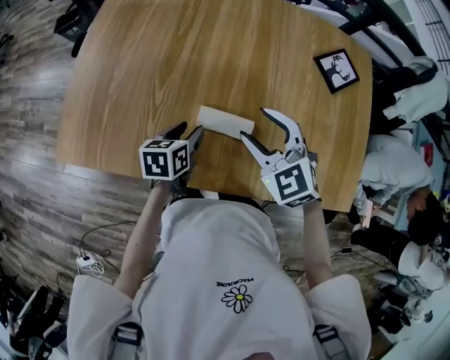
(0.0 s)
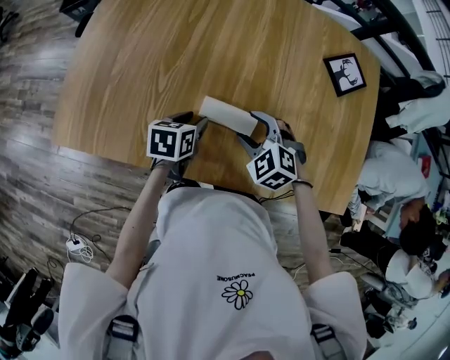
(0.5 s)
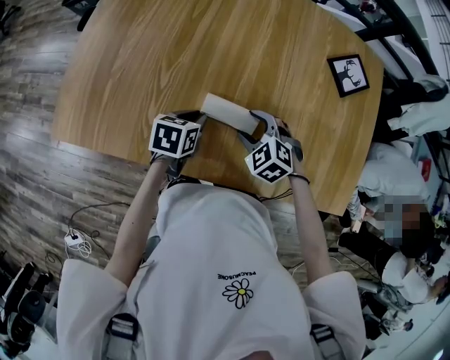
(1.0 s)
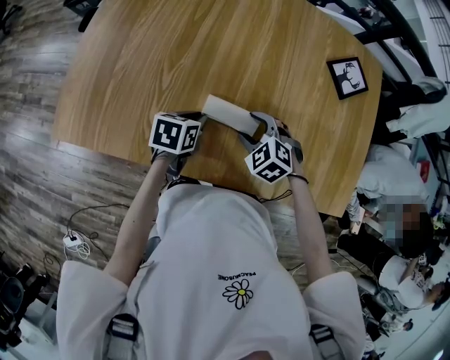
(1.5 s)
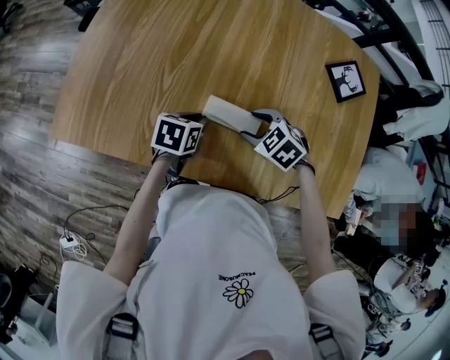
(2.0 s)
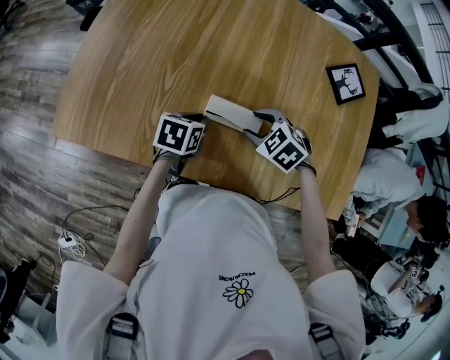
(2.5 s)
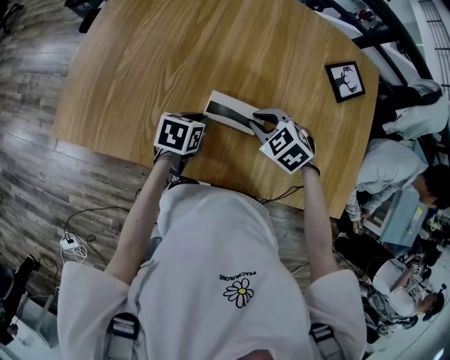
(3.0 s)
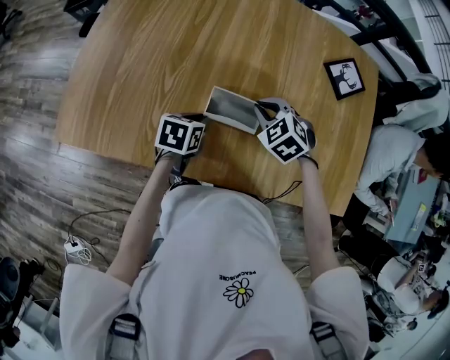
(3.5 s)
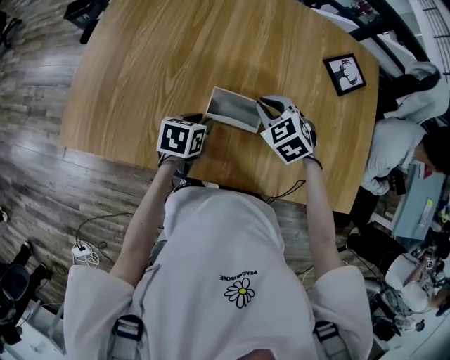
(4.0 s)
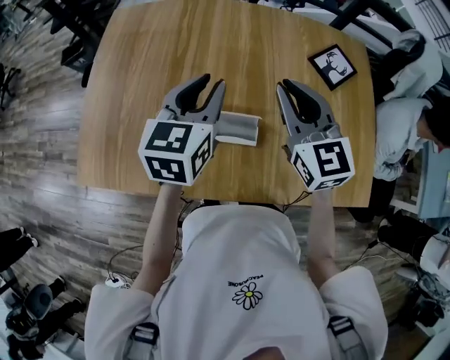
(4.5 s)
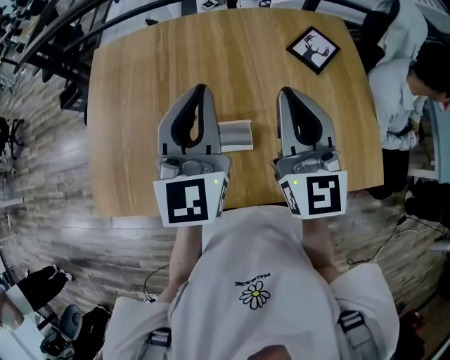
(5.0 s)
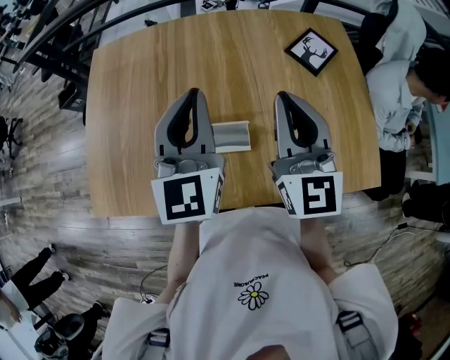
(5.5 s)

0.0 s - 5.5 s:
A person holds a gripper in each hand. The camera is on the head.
0.0 s - 2.0 s: The left gripper closes, while the right gripper goes about 15 cm downward, and changes its angle by roughly 30 degrees.
2.0 s - 3.5 s: The right gripper goes approximately 5 cm forward, and closes its fingers.
3.5 s - 5.5 s: The grippers both shift upward by roughly 30 cm. The left gripper angles its fingers upward, by about 50 degrees; the right gripper points its fingers some 60 degrees further upward.

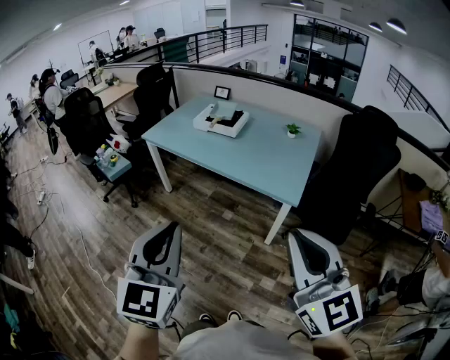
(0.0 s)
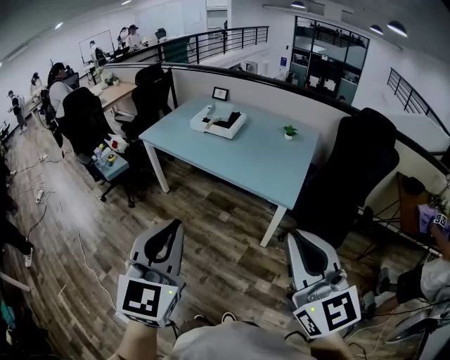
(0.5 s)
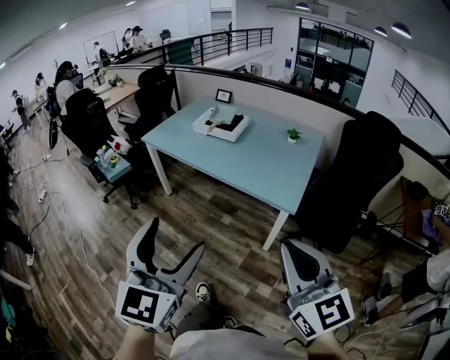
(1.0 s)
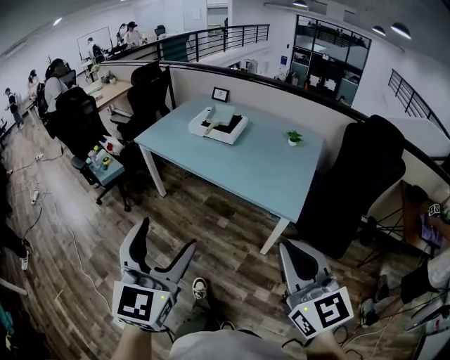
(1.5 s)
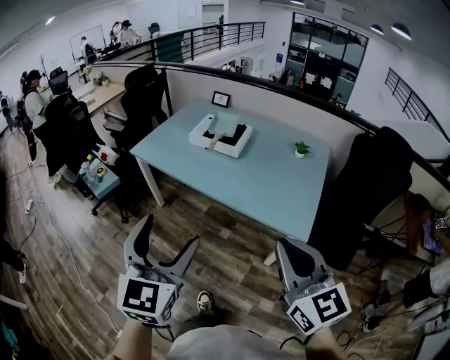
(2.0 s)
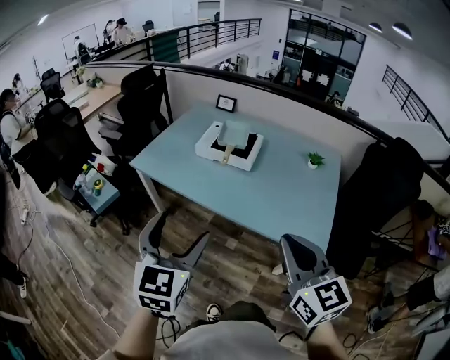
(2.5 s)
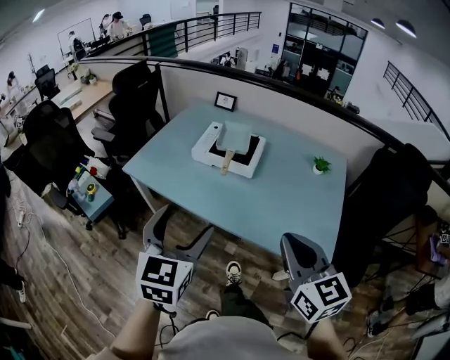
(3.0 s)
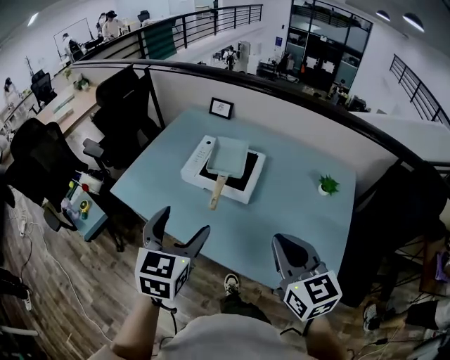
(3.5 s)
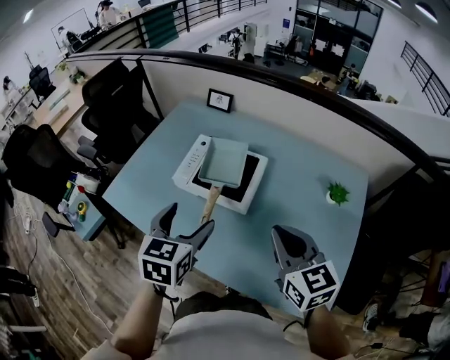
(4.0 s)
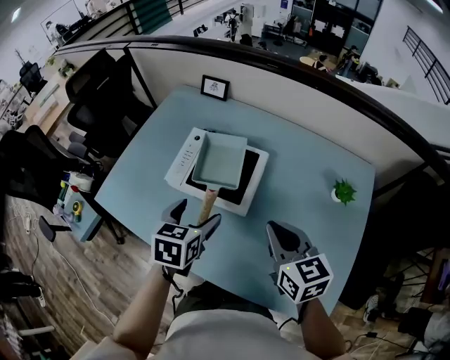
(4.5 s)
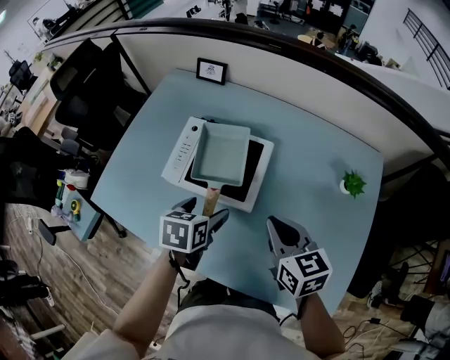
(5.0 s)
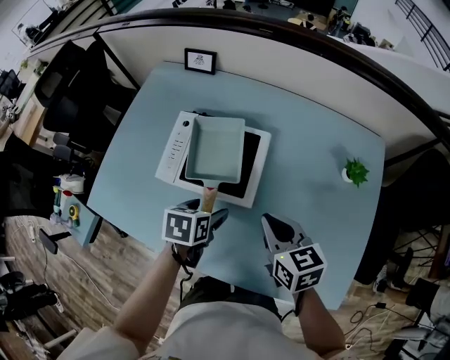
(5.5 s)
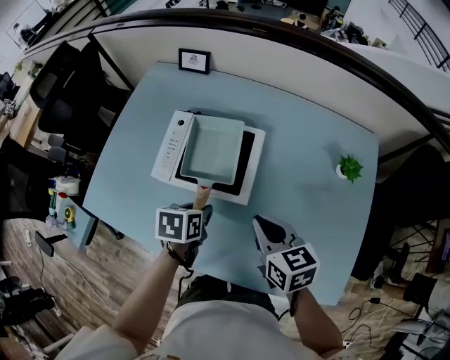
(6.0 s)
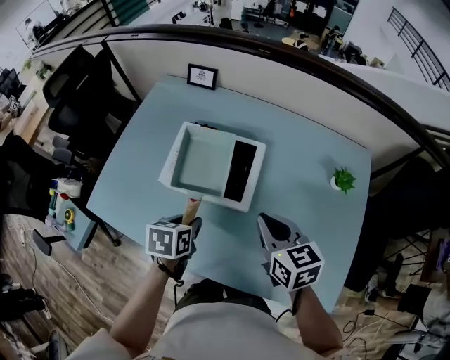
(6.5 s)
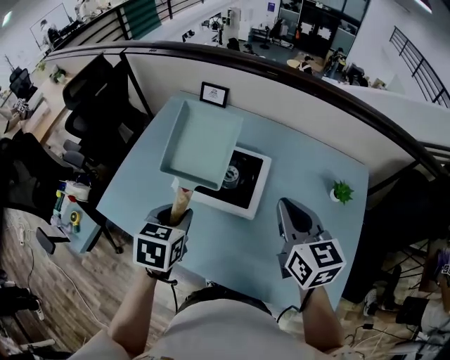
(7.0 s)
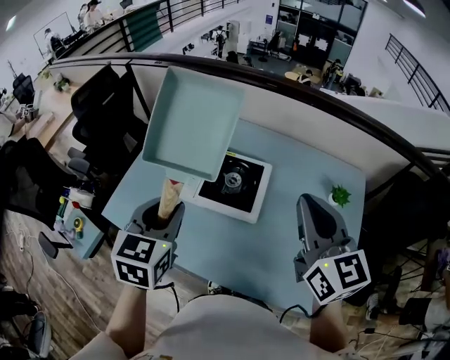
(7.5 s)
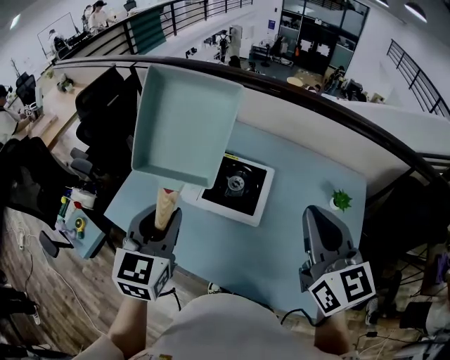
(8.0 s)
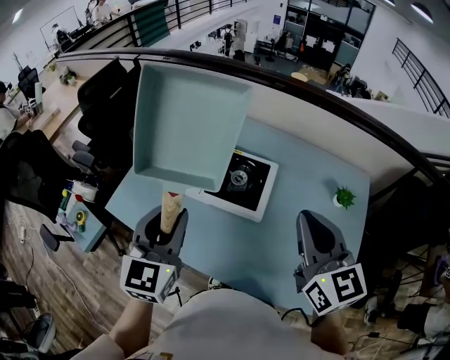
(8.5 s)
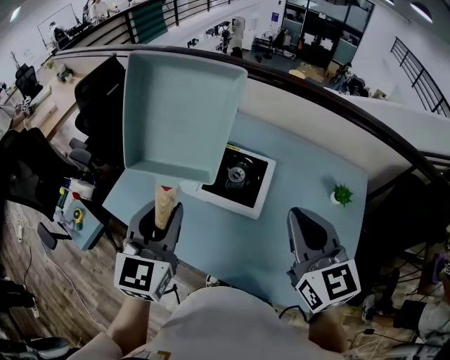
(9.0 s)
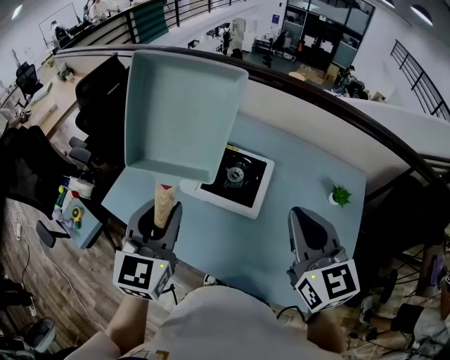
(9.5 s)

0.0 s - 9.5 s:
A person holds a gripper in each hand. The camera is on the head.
0.0 s - 2.0 s: Both grippers move forward, some 25 cm. The left gripper opens its fingers.
2.0 s - 4.0 s: Both grippers are carried forward, approximately 60 cm. The left gripper turns by some 30 degrees.
4.0 s - 5.5 s: The two grippers go approximately 20 cm downward and forward. The left gripper turns by roughly 40 degrees. The right gripper swivels approximately 20 degrees.
5.5 s - 7.5 s: The left gripper is displaced upward and to the left by some 30 cm, rotates some 40 degrees, and closes, while the right gripper heads upward, covering about 25 cm, and turns by some 30 degrees.
7.5 s - 9.5 s: The grippers stay close to where they were, moving slightly.

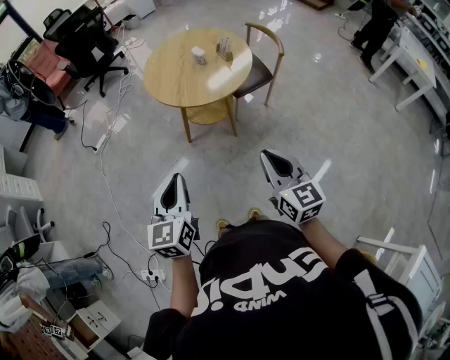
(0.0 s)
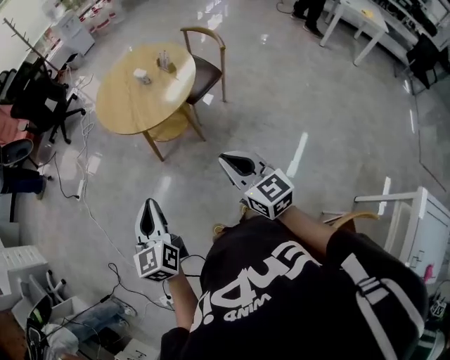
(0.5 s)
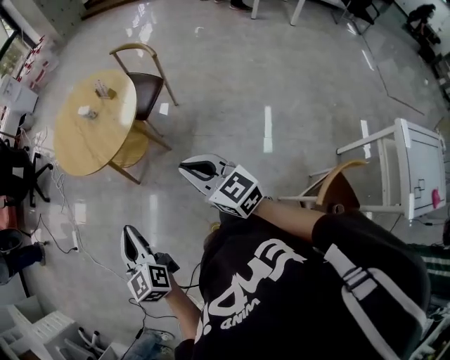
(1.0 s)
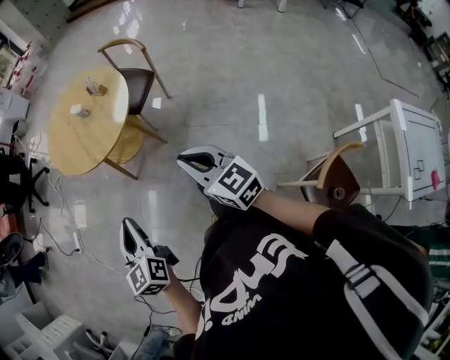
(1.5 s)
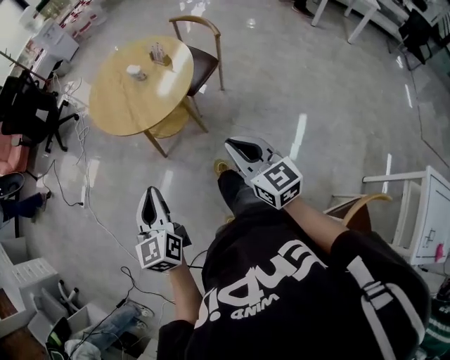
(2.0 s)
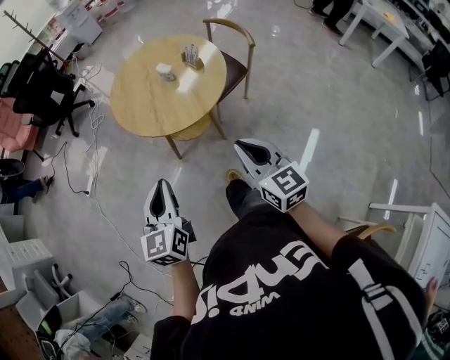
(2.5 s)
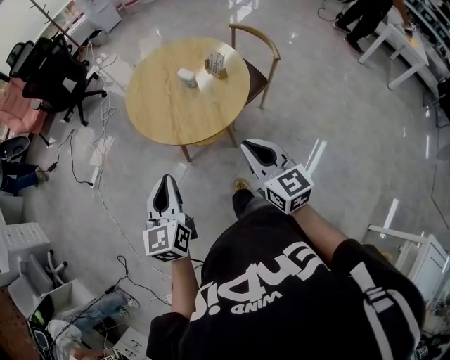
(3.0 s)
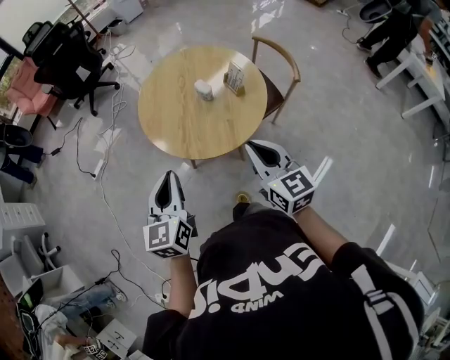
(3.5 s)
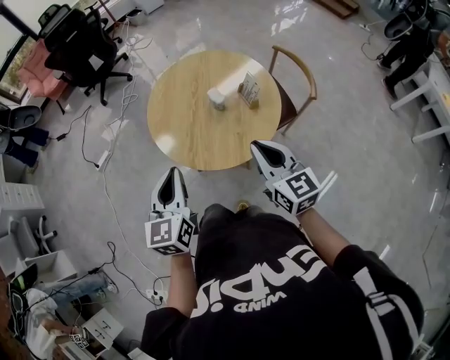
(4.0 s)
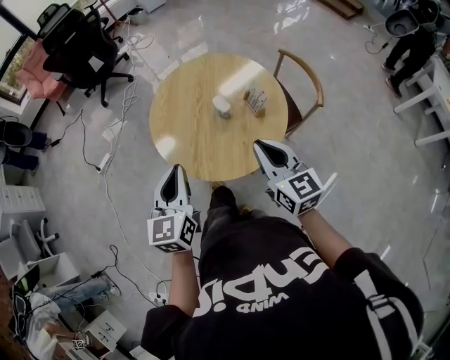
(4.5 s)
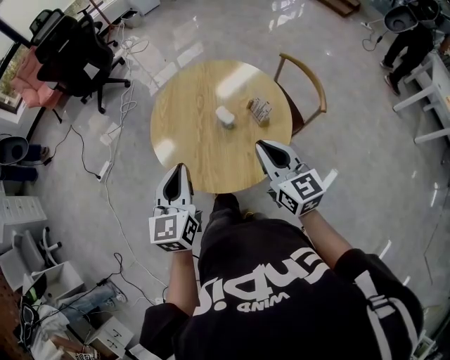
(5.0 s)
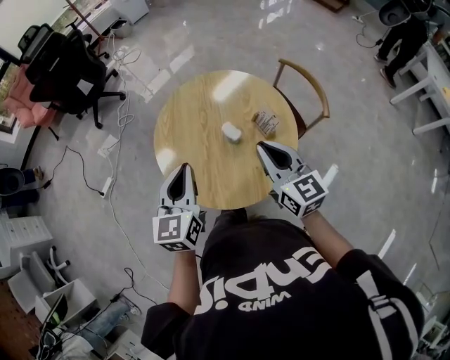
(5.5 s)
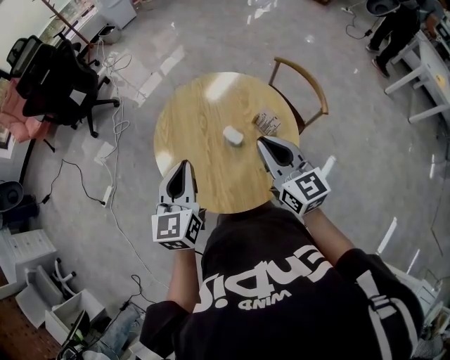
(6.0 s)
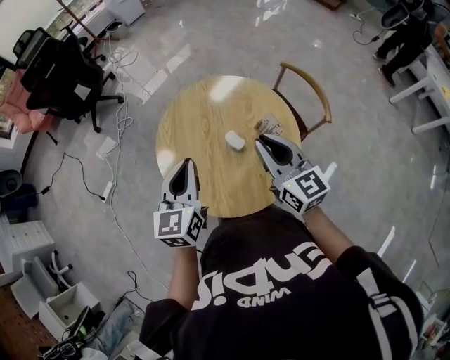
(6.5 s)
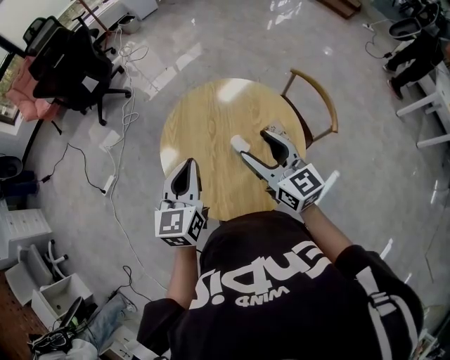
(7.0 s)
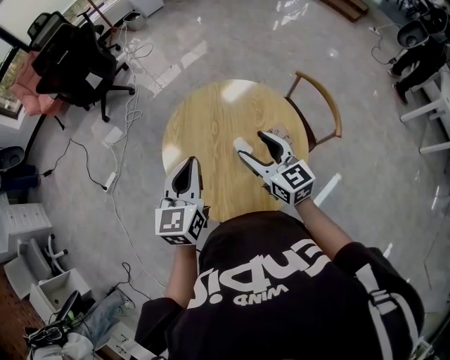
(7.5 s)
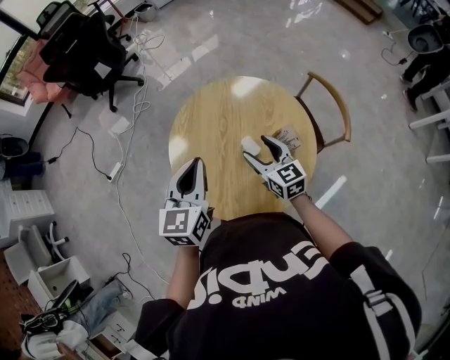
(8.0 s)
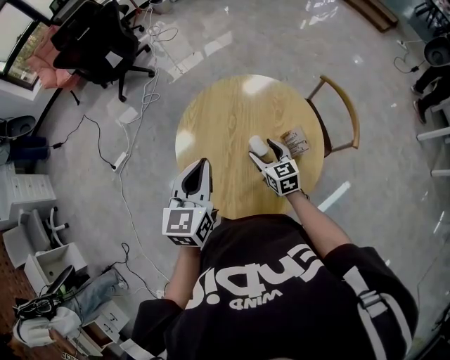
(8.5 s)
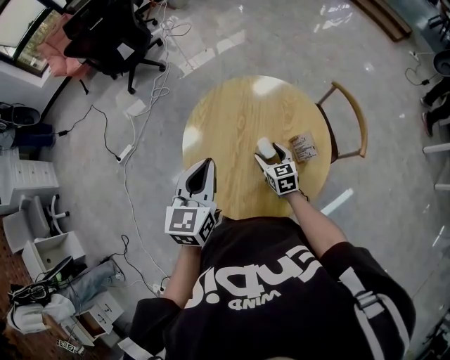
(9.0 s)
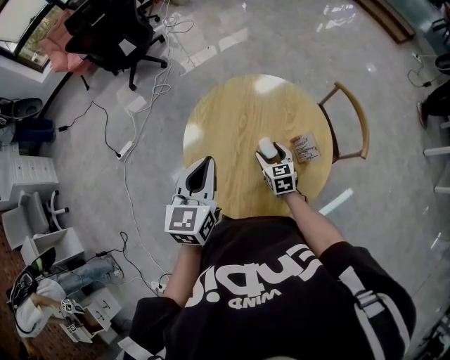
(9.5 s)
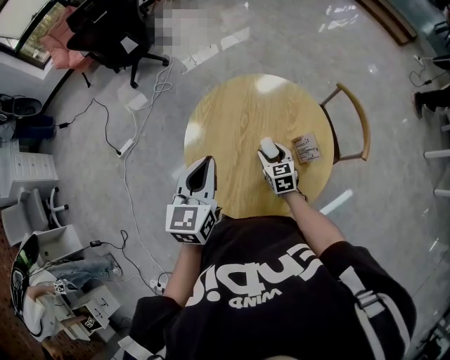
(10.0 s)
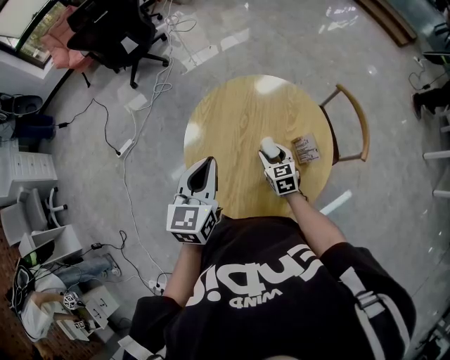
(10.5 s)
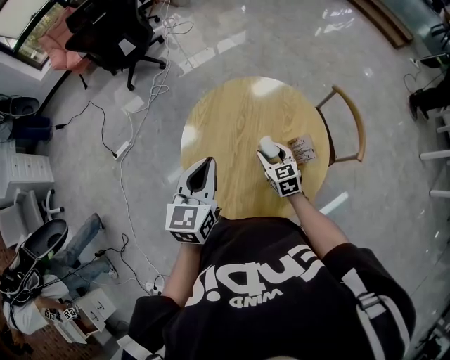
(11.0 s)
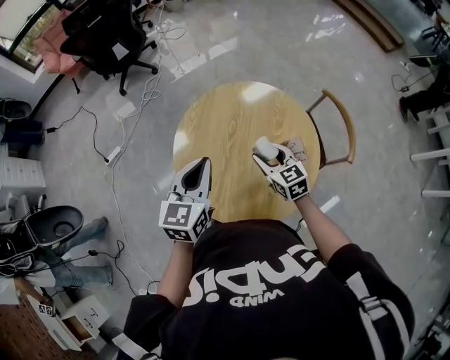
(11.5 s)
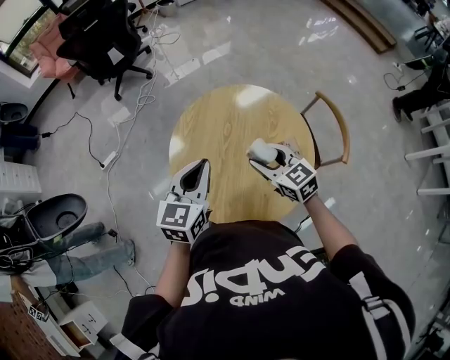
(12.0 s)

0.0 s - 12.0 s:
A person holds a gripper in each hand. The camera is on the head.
0.0 s - 2.0 s: The left gripper moves forward, some 5 cm. Meanwhile the right gripper shifts by about 5 cm.
2.0 s - 4.0 s: The two grippers go approximately 35 cm forward.
4.0 s - 6.0 s: The grippers both shift forward by approximately 20 cm.
6.0 s - 8.0 s: The right gripper travels downward and forward by approximately 15 cm, and opens.
8.0 s - 10.0 s: The right gripper travels downward by roughly 15 cm.
10.0 s - 12.0 s: The right gripper shifts roughly 15 cm upward, and rotates roughly 30 degrees.
